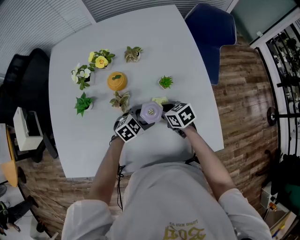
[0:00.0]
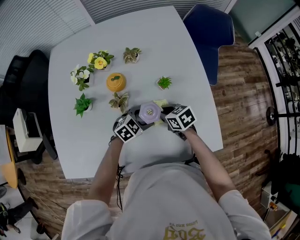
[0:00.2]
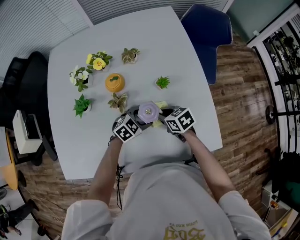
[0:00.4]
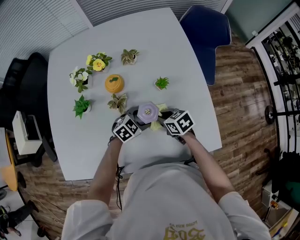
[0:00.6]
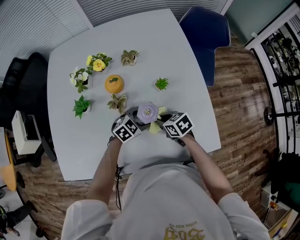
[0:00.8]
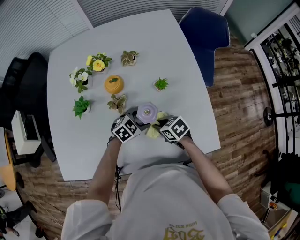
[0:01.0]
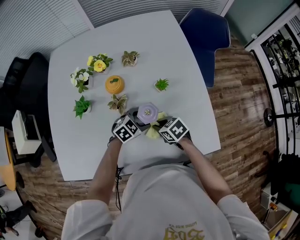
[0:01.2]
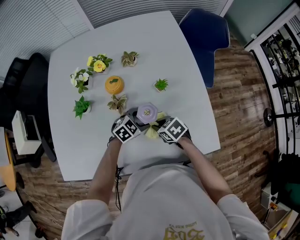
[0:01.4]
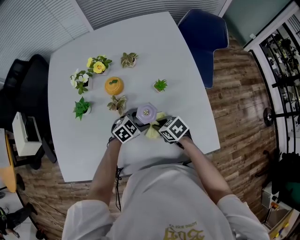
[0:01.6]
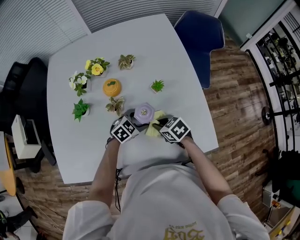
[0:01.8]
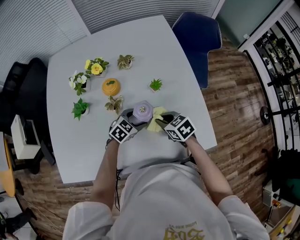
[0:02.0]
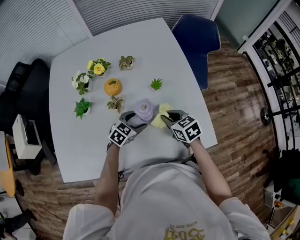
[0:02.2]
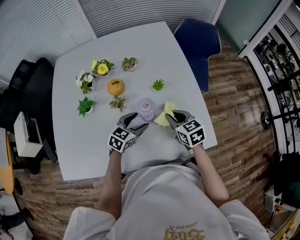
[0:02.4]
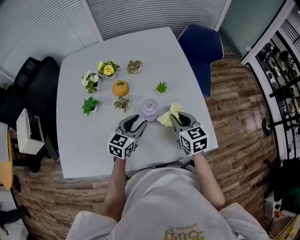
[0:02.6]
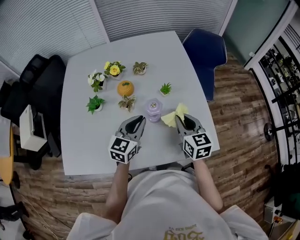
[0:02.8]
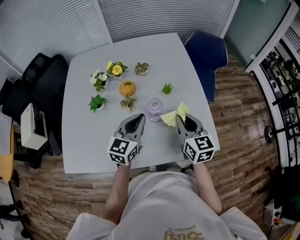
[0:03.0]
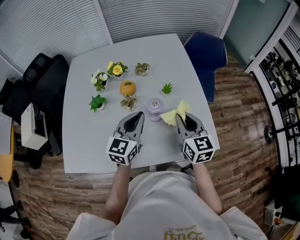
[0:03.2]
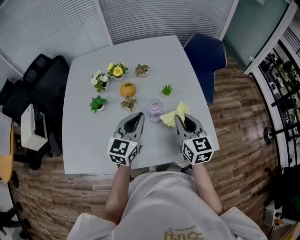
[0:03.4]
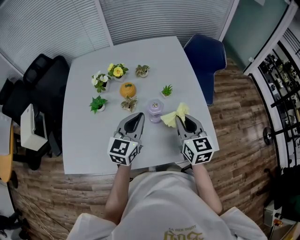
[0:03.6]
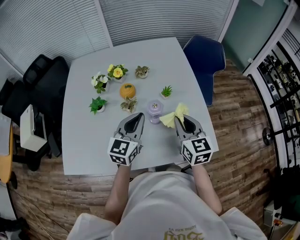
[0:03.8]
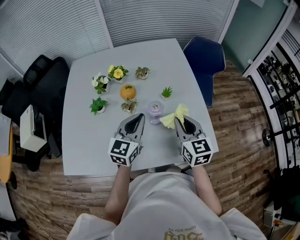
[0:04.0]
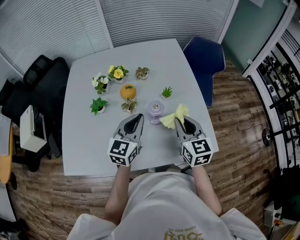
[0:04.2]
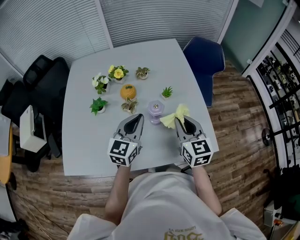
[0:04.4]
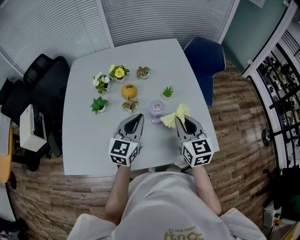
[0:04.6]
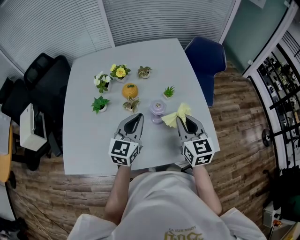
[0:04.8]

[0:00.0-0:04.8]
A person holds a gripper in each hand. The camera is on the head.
0:00.0 to 0:01.6: The right gripper changes place by some 5 cm.
0:01.6 to 0:03.2: Both grippers move upward, about 25 cm. The left gripper points its fingers about 40 degrees further upward, and closes; the right gripper tilts its fingers some 40 degrees upward.
0:03.2 to 0:04.8: There are only small adjustments of the grippers.

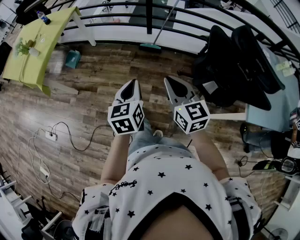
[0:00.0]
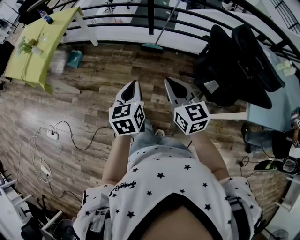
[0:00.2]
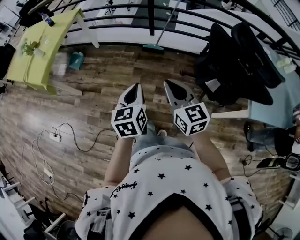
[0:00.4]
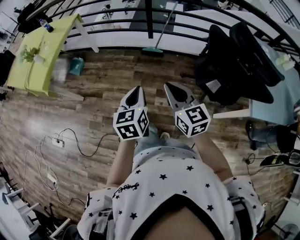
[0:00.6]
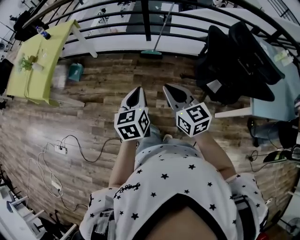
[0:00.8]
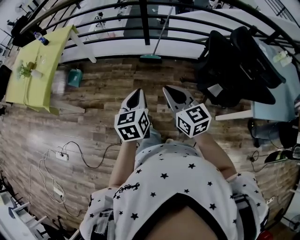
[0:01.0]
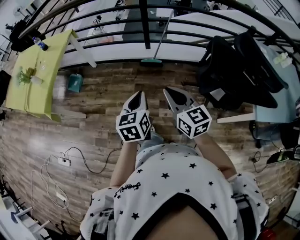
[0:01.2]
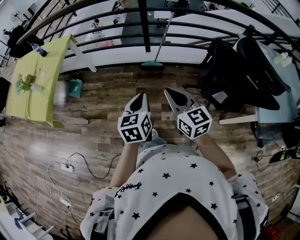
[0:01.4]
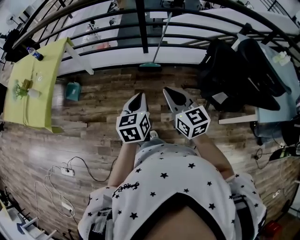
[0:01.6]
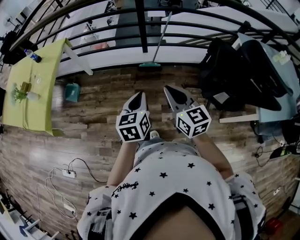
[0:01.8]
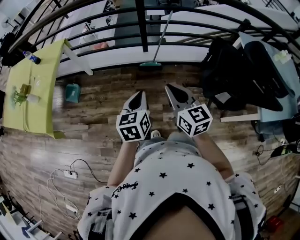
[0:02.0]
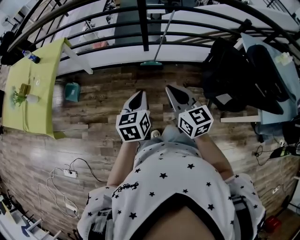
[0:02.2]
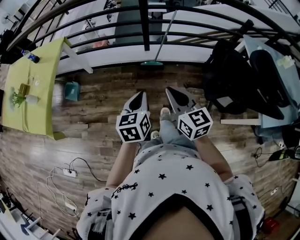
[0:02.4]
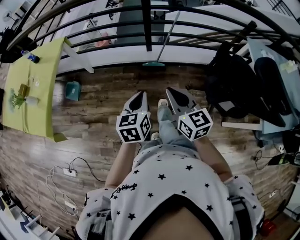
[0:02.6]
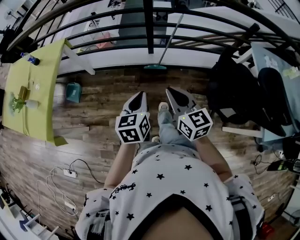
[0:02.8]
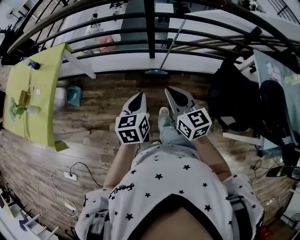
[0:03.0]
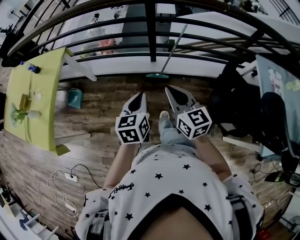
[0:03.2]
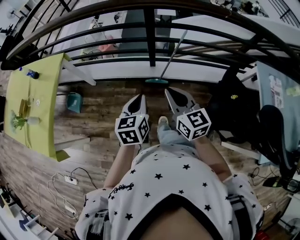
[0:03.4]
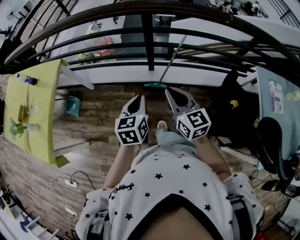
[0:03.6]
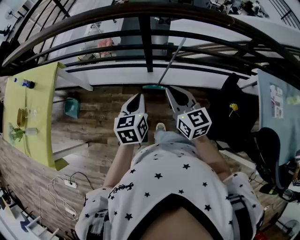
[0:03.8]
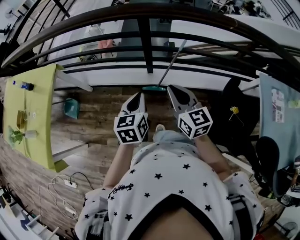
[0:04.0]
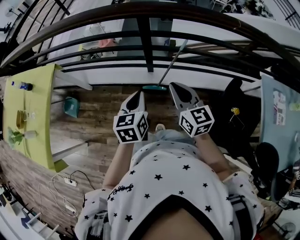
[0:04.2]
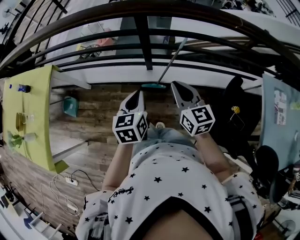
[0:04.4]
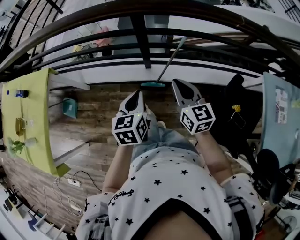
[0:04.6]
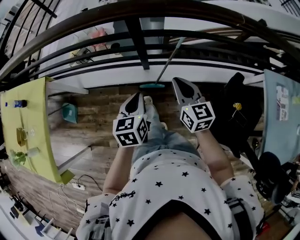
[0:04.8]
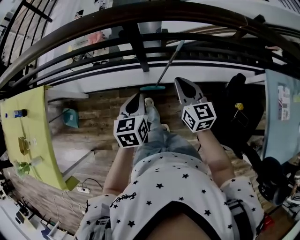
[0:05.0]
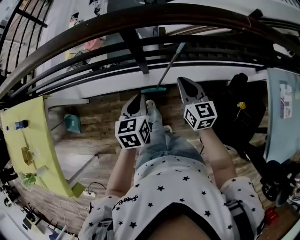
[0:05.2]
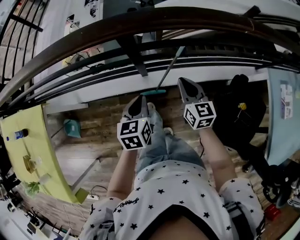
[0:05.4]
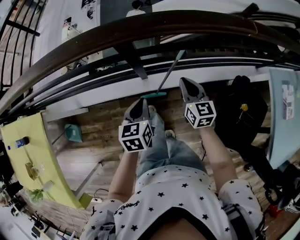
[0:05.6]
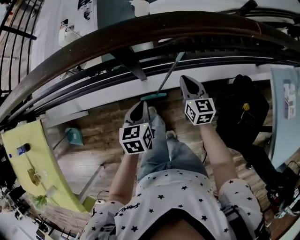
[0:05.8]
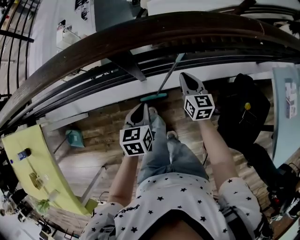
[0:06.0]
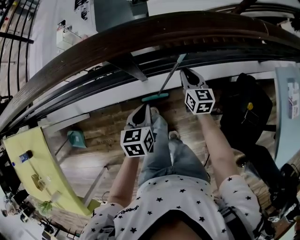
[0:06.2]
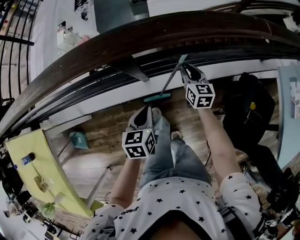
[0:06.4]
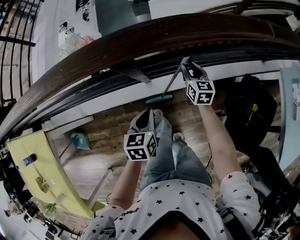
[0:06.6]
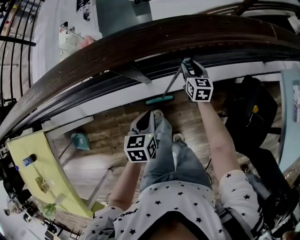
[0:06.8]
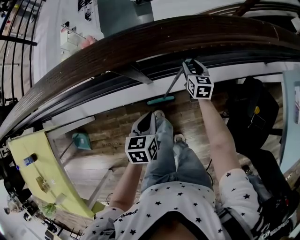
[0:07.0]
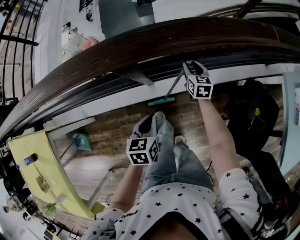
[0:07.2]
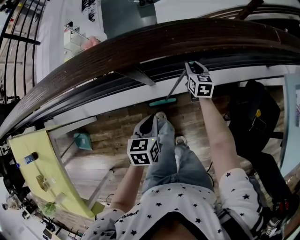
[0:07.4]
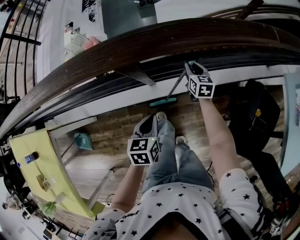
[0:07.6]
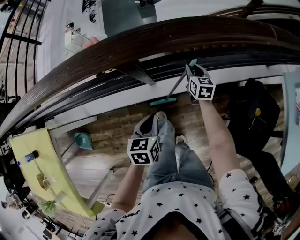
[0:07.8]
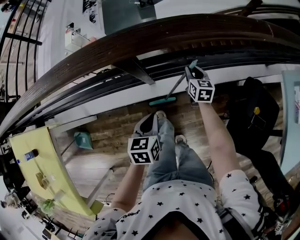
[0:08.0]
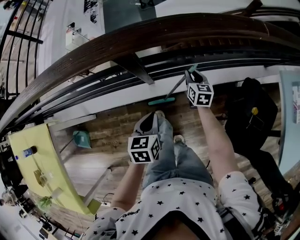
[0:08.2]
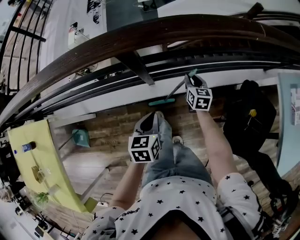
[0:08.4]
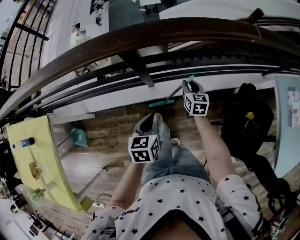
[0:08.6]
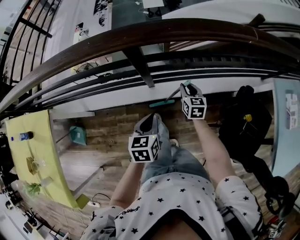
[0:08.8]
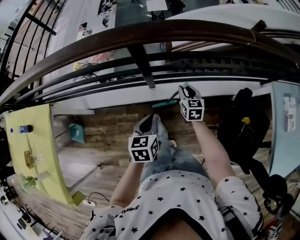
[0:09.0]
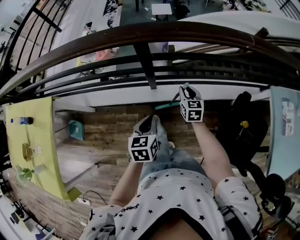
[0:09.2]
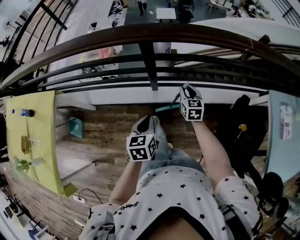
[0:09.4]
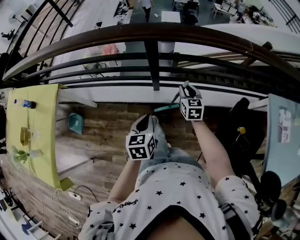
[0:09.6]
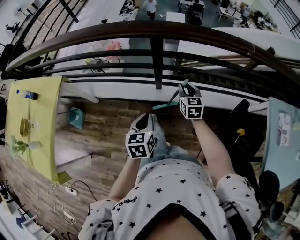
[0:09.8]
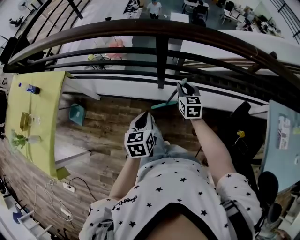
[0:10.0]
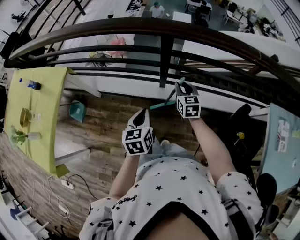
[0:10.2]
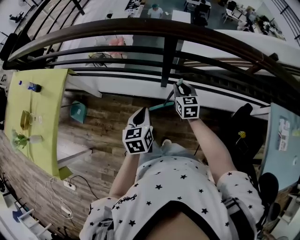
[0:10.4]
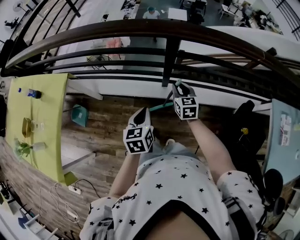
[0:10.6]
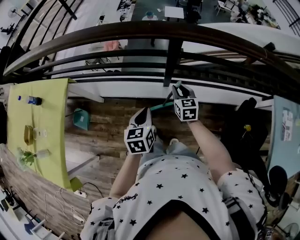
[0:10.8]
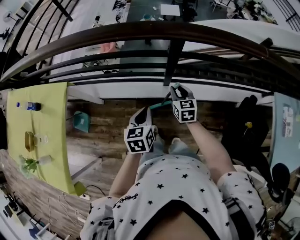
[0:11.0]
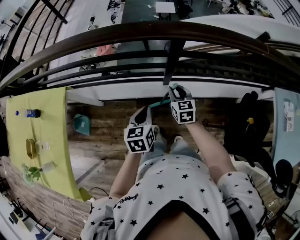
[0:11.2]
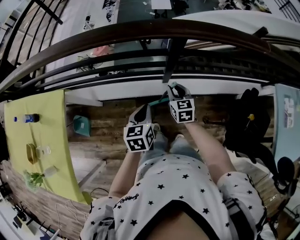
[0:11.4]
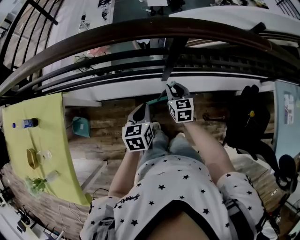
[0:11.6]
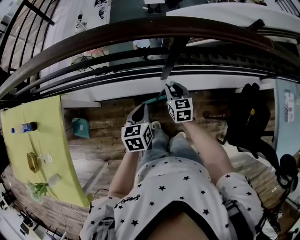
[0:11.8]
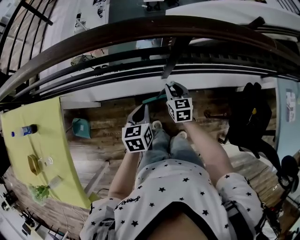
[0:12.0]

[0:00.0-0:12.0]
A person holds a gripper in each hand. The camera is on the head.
0:00.0 to 0:01.6: The right gripper goes roughly 15 cm forward and to the left; the left gripper is displaced forward by approximately 10 cm.
0:01.6 to 0:03.0: The two grippers go roughly 20 cm forward.
0:03.0 to 0:04.4: The right gripper heads forward and to the right, covering about 30 cm. The left gripper shifts roughly 25 cm forward.
0:04.4 to 0:06.0: Both grippers travel together forward and downward, about 25 cm. The right gripper swivels roughly 20 degrees.
0:06.0 to 0:07.6: The right gripper moves forward and downward, some 15 cm.
0:07.6 to 0:09.0: The left gripper goes some 10 cm backward and upward, while the right gripper goes about 15 cm backward and upward.
0:09.0 to 0:10.4: The right gripper moves to the left and upward, approximately 15 cm; the left gripper shifts some 15 cm to the left, backward and upward.
0:10.4 to 0:12.0: The left gripper travels to the left, forward and downward by roughly 15 cm. Meanwhile the right gripper travels to the left and downward by roughly 15 cm.

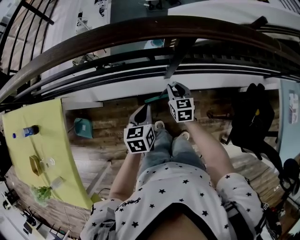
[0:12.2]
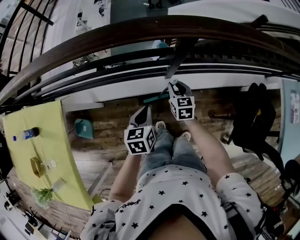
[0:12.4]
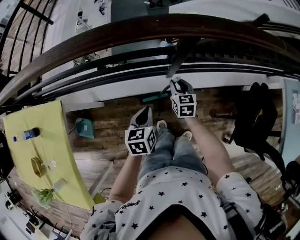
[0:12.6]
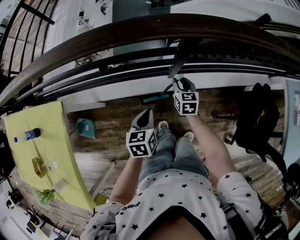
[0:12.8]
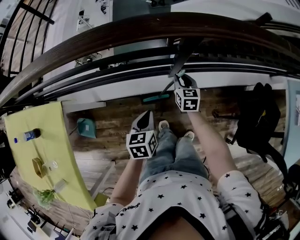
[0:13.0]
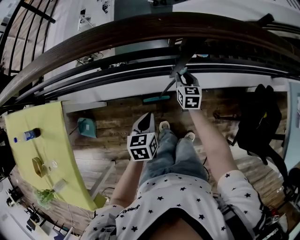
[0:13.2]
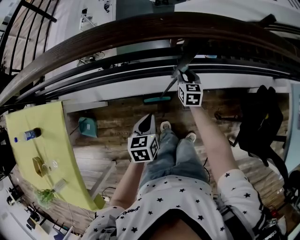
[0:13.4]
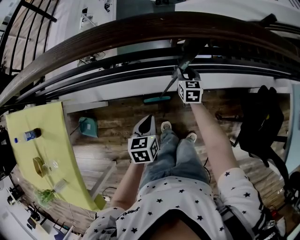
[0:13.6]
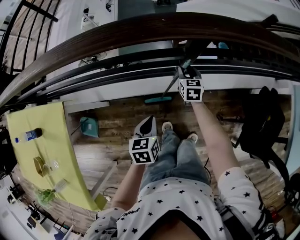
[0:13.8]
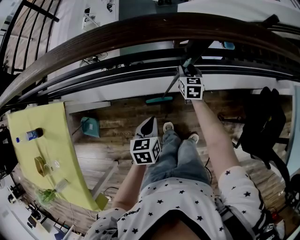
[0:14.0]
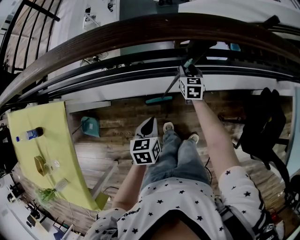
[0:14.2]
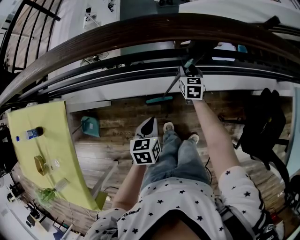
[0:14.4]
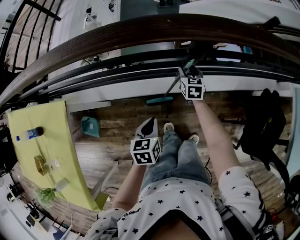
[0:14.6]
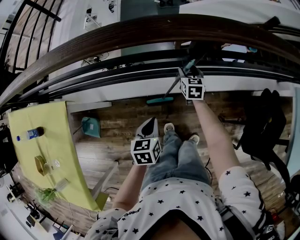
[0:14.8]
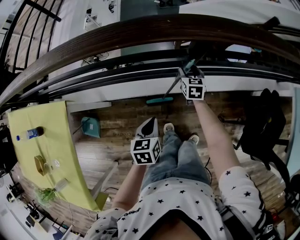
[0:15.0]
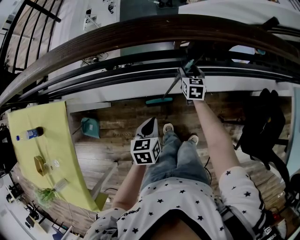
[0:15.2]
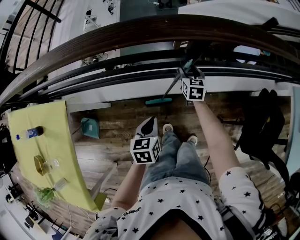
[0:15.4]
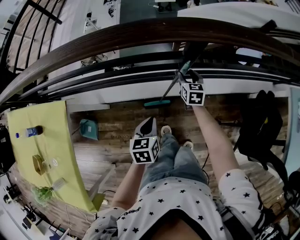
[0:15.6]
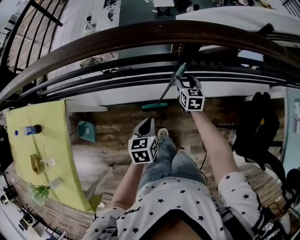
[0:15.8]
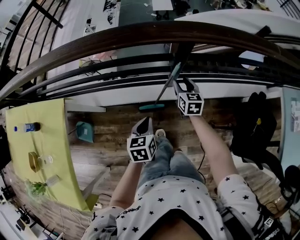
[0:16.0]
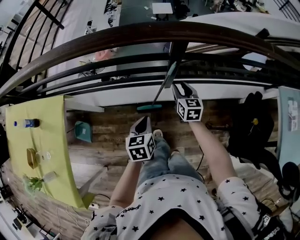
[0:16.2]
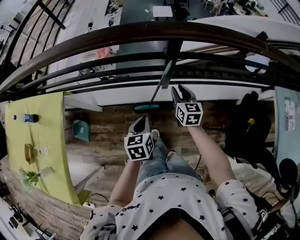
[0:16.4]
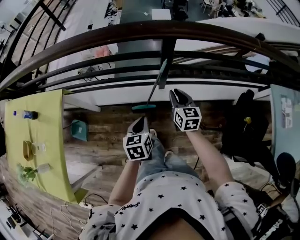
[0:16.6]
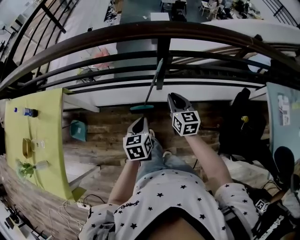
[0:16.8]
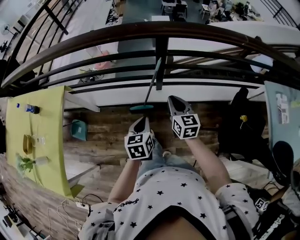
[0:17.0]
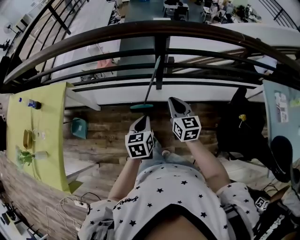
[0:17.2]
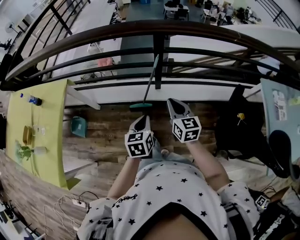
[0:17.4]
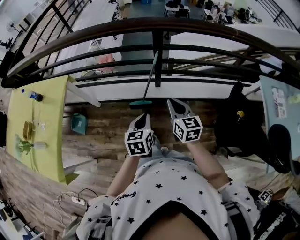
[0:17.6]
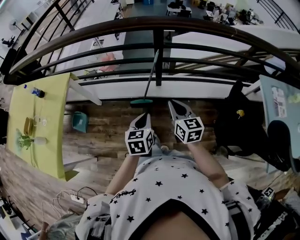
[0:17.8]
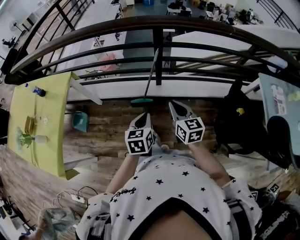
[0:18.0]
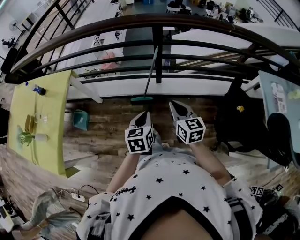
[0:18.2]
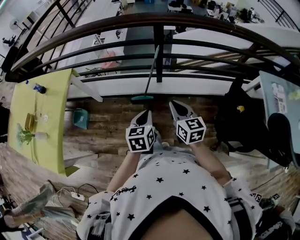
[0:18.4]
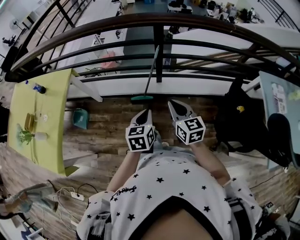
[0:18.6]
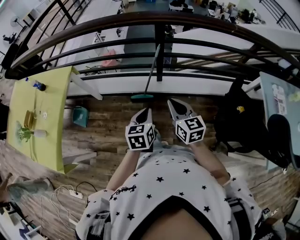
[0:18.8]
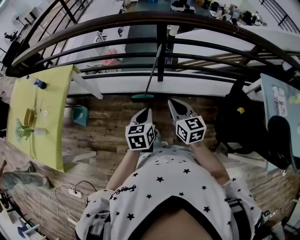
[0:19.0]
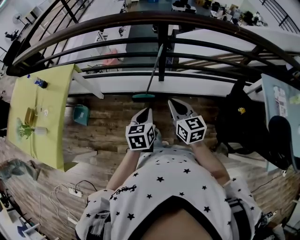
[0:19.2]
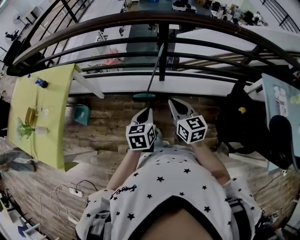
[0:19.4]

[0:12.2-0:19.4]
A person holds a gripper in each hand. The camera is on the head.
0:12.2 to 0:13.6: The right gripper travels forward and downward by roughly 15 cm. Meanwhile the left gripper moves downward, about 5 cm.
0:13.6 to 0:15.0: The right gripper opens its fingers.
0:15.0 to 0:16.6: The right gripper is displaced backward and upward by roughly 25 cm, and closes up, while the left gripper heads backward, upward and to the right, covering some 15 cm.
0:16.6 to 0:18.0: The two grippers go some 20 cm backward.
0:18.0 to 0:19.4: The grippers make only small movements.
